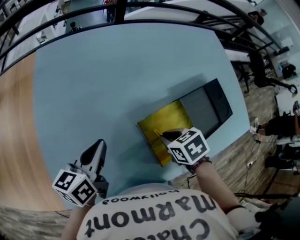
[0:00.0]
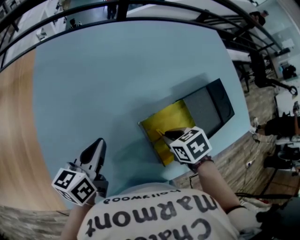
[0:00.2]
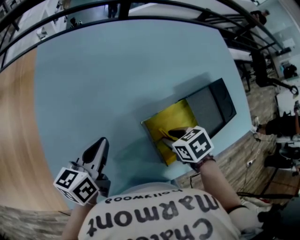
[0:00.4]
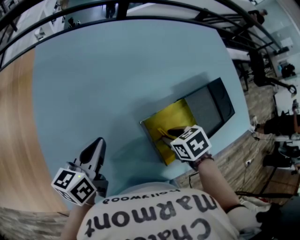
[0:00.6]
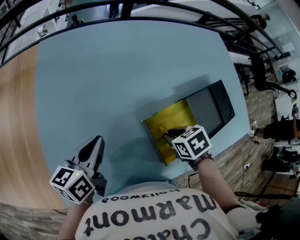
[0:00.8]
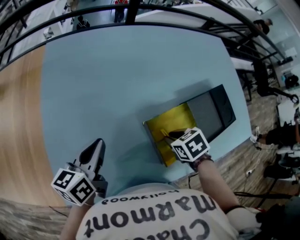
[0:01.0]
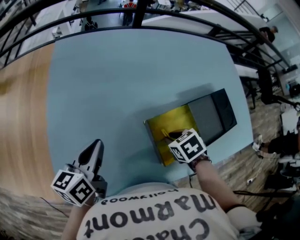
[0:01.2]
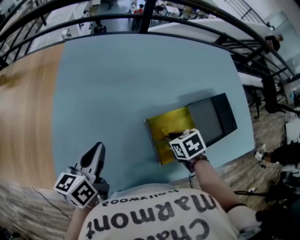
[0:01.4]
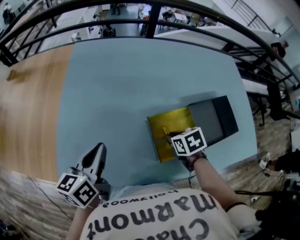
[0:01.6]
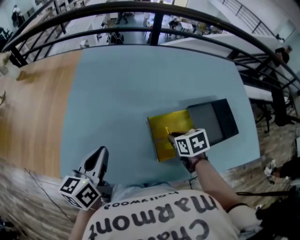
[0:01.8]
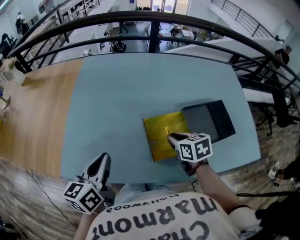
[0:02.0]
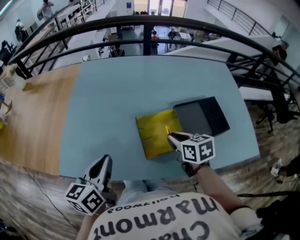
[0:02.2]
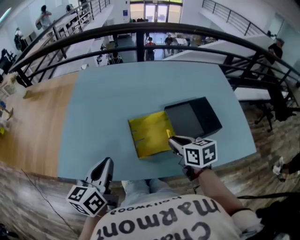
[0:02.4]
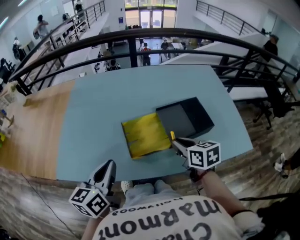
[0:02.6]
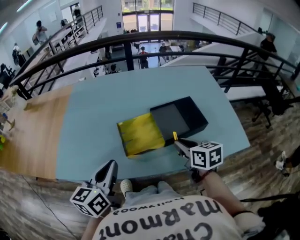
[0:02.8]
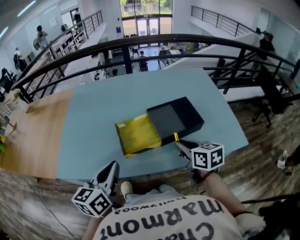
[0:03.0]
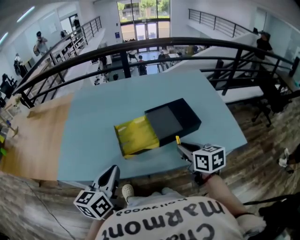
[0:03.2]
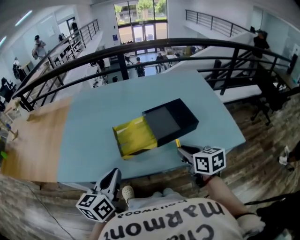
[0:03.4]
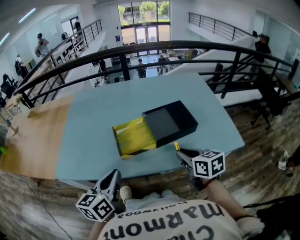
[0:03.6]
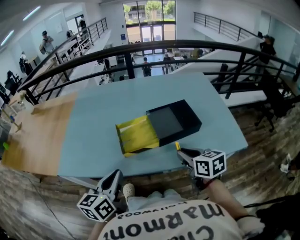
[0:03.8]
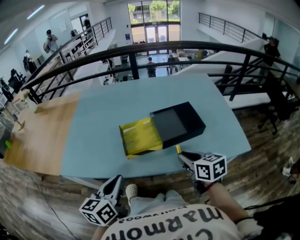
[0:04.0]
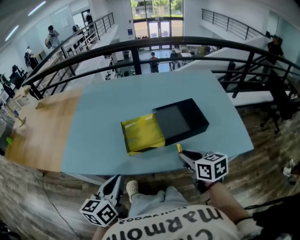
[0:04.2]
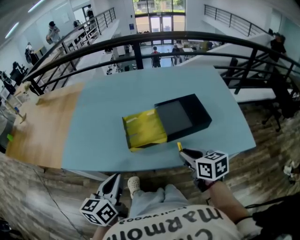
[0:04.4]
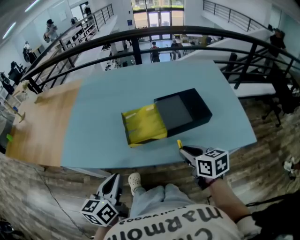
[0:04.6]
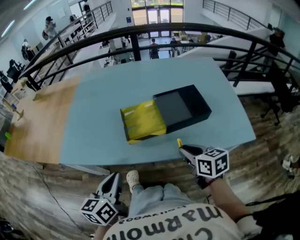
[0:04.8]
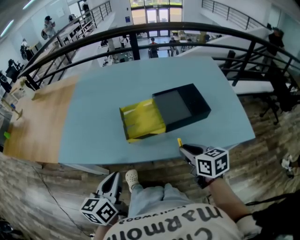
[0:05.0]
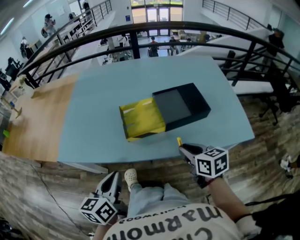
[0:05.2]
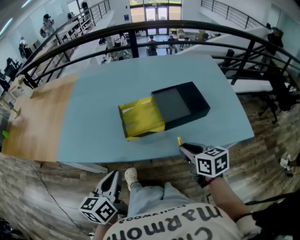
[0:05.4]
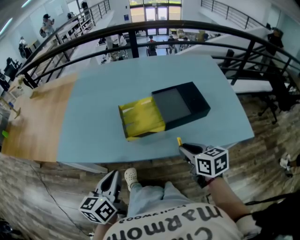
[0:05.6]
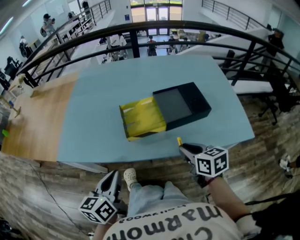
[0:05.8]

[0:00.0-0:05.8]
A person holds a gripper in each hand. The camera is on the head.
0:00.0 to 0:01.4: The left gripper travels backward by approximately 5 cm.
0:01.4 to 0:02.8: The left gripper shifts approximately 25 cm backward, to the right and upward; the right gripper shifts roughly 25 cm upward, to the right and backward, and tips its fingers upward by some 40 degrees.
0:02.8 to 0:04.4: The two grippers go some 10 cm backward.
0:04.4 to 0:05.8: There are only small adjustments of the grippers.

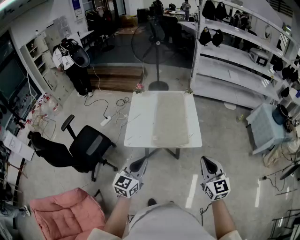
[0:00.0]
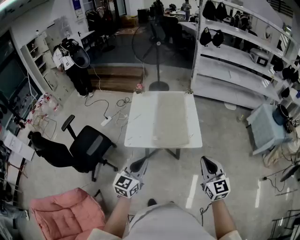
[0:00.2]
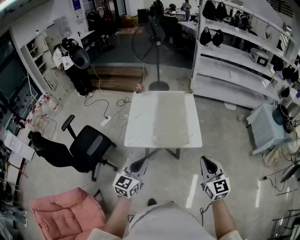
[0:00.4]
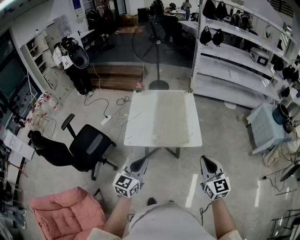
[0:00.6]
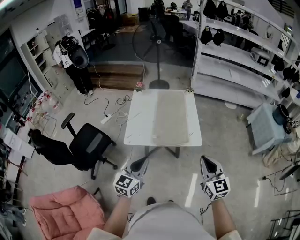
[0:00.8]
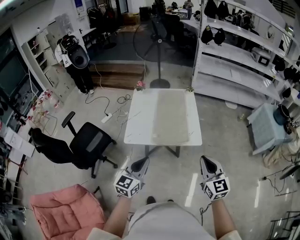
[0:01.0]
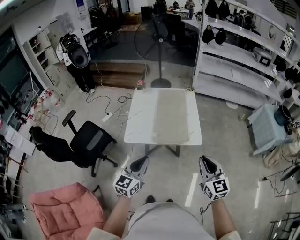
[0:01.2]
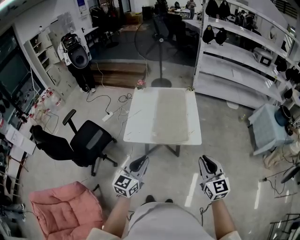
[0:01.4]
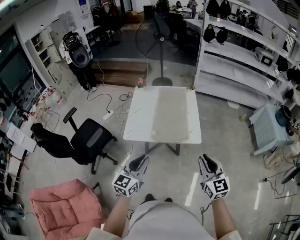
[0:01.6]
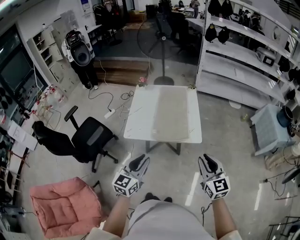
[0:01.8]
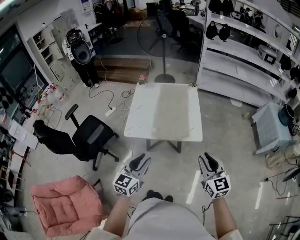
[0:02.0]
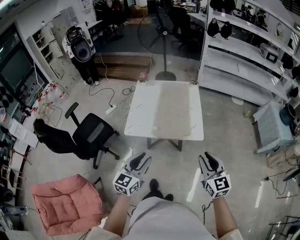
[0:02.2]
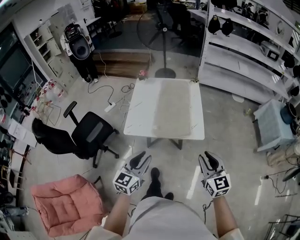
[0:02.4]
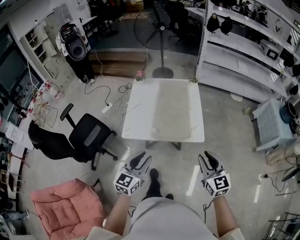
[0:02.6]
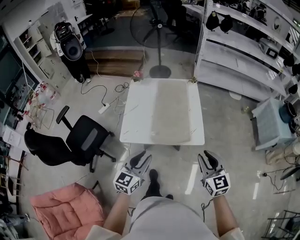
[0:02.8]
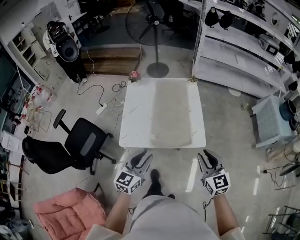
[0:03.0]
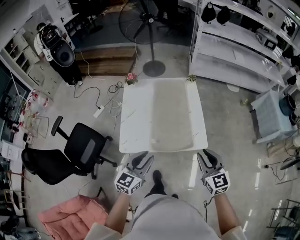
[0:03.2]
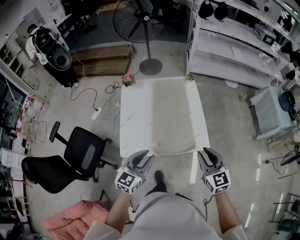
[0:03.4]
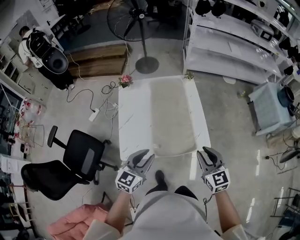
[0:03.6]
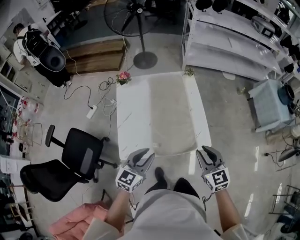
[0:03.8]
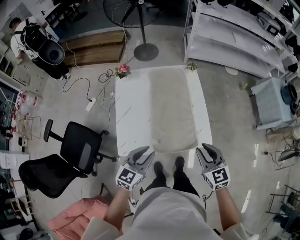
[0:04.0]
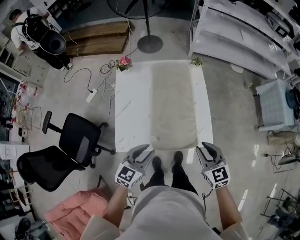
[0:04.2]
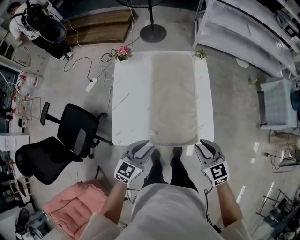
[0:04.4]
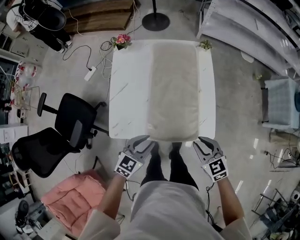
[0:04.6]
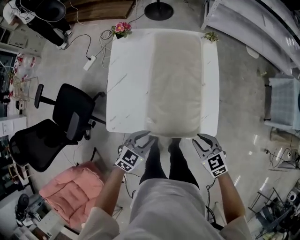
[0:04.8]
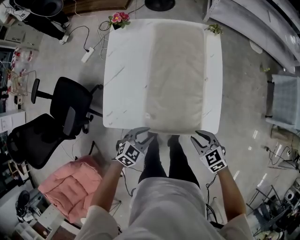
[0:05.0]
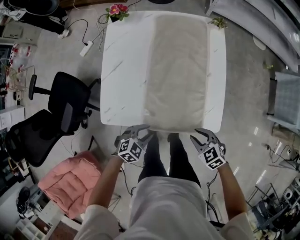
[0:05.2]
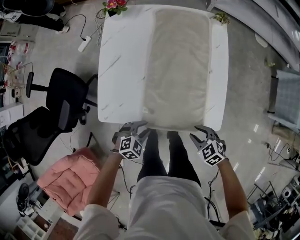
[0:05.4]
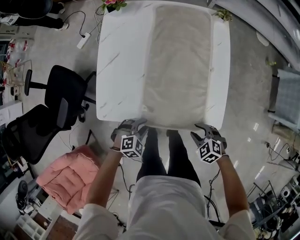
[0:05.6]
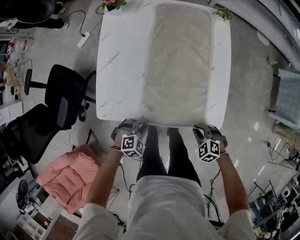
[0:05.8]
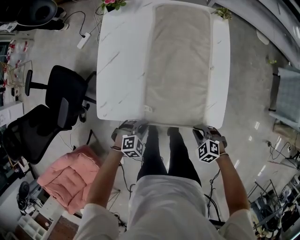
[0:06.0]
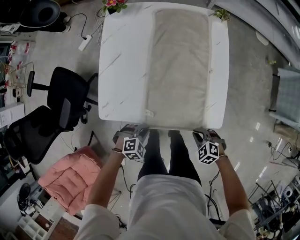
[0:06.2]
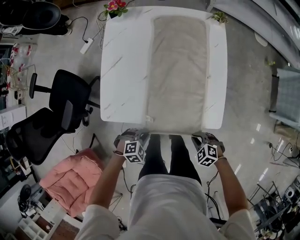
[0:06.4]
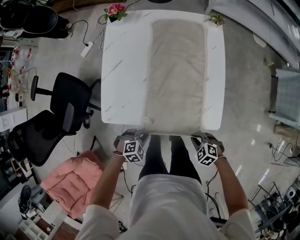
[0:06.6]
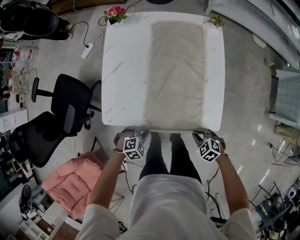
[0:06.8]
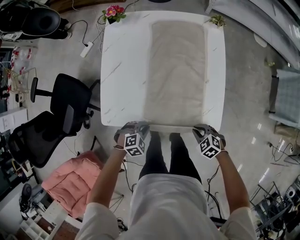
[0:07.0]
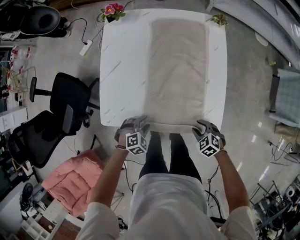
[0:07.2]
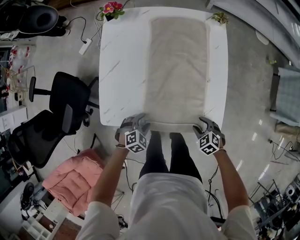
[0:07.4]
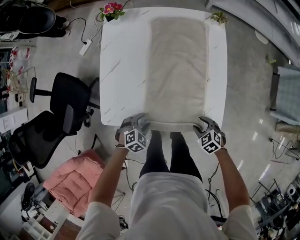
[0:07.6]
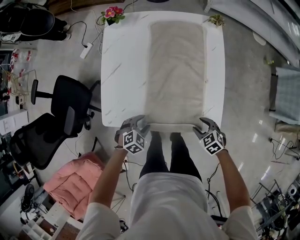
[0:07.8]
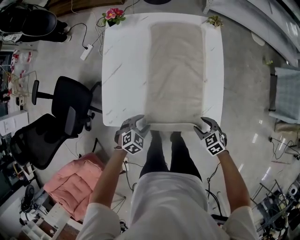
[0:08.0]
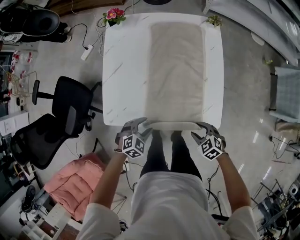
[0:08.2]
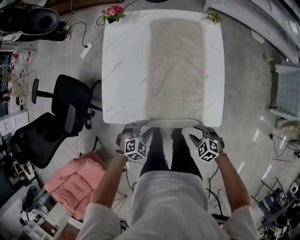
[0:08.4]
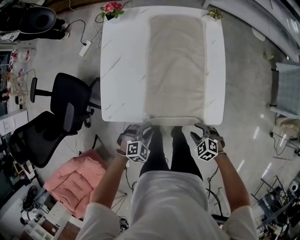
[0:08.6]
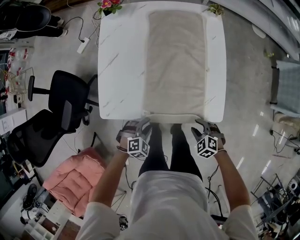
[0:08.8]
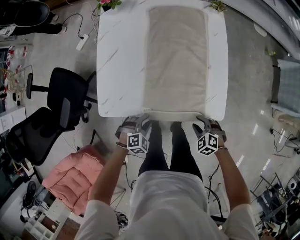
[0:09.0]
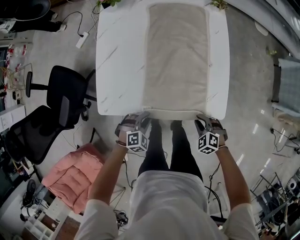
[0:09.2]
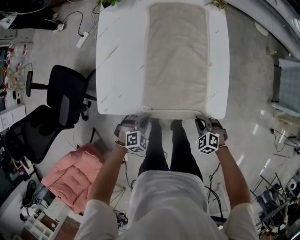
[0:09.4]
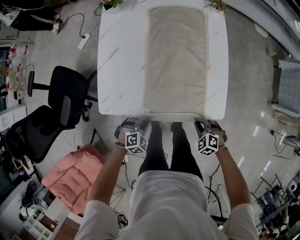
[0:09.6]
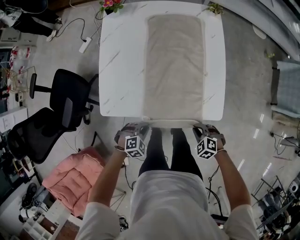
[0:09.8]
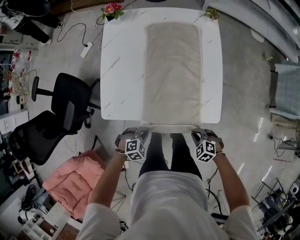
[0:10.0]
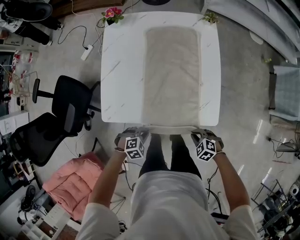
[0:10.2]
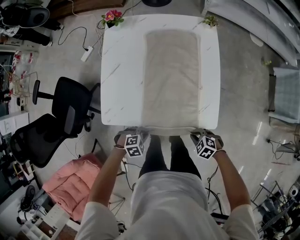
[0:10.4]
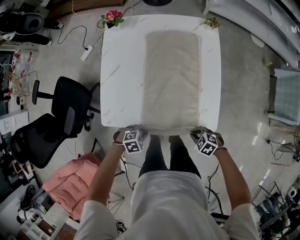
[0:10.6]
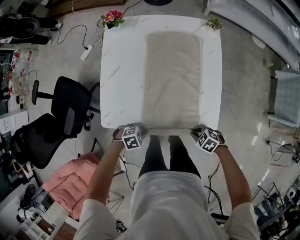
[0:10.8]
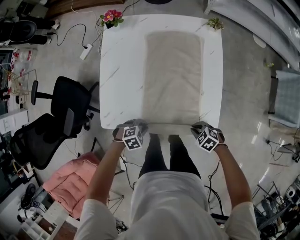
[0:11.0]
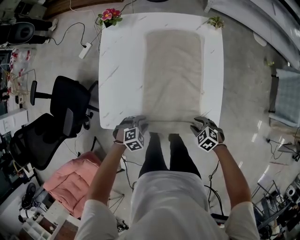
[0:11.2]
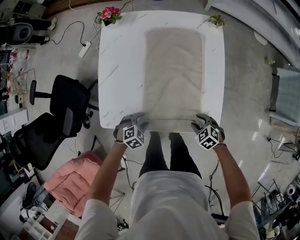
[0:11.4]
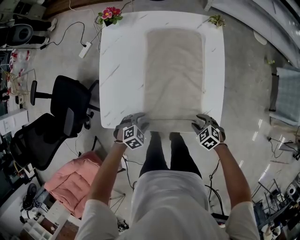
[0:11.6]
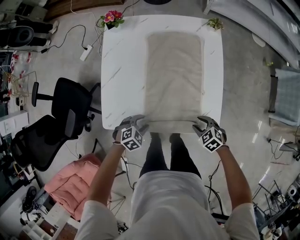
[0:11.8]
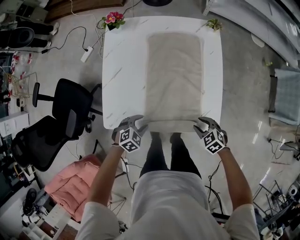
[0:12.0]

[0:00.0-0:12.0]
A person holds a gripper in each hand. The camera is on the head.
0:00.0 to 0:01.6: The grippers move only a little.
0:01.6 to 0:03.0: Both grippers travel together forward, approximately 15 cm.
0:03.0 to 0:04.4: Both grippers travel together forward and downward, some 20 cm.
0:04.4 to 0:06.0: The two grippers go some 25 cm downward. The right gripper tips its fingers downward by some 30 degrees; the left gripper angles its fingers downward, by some 40 degrees, and closes.
0:06.0 to 0:07.6: The right gripper changes place by approximately 5 cm, and opens. Meanwhile the left gripper moves roughly 5 cm, and opens.
0:07.6 to 0:09.0: The grippers both shift backward by approximately 5 cm.
0:09.0 to 0:10.4: The left gripper swivels about 20 degrees, and closes its fingers. The right gripper closes up.
0:10.4 to 0:12.0: The right gripper changes place by about 10 cm, and opens. The left gripper shifts by approximately 10 cm, changes its angle by roughly 20 degrees, and opens.

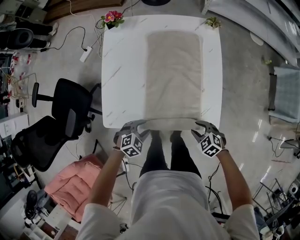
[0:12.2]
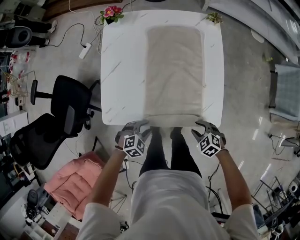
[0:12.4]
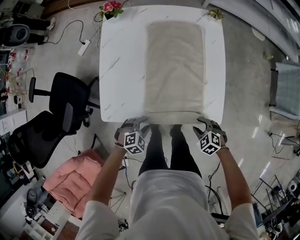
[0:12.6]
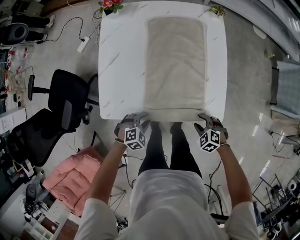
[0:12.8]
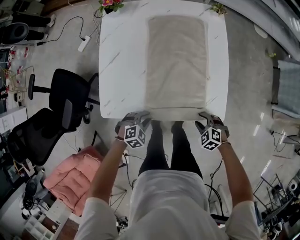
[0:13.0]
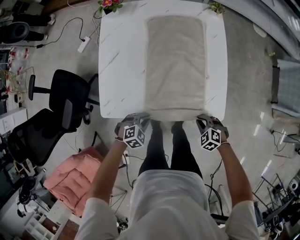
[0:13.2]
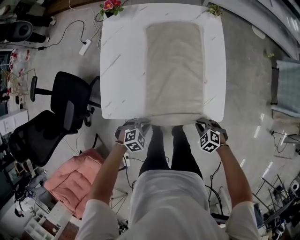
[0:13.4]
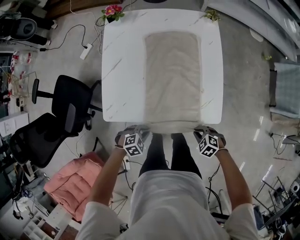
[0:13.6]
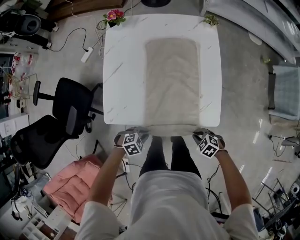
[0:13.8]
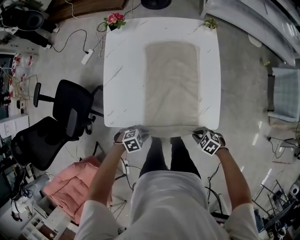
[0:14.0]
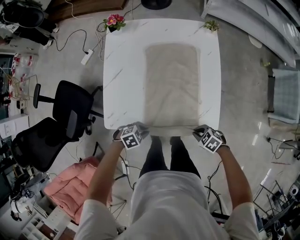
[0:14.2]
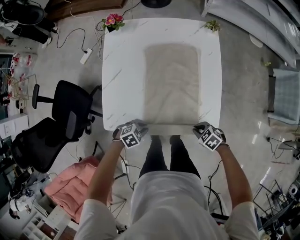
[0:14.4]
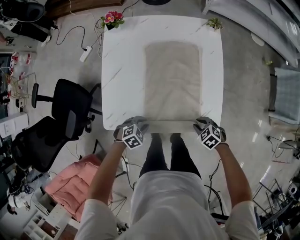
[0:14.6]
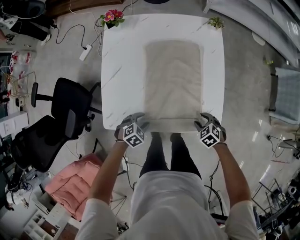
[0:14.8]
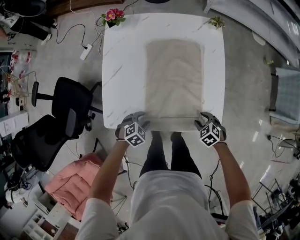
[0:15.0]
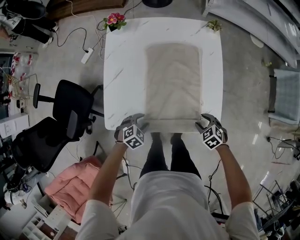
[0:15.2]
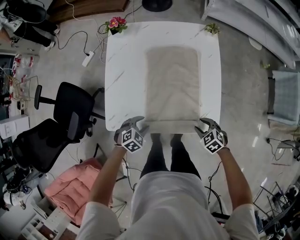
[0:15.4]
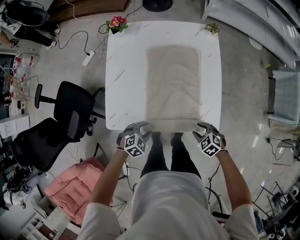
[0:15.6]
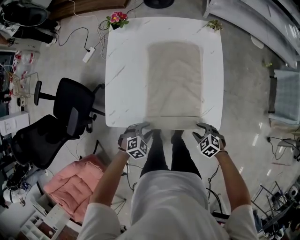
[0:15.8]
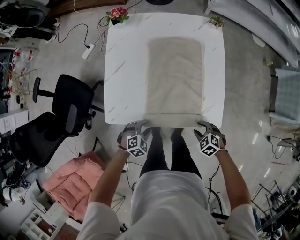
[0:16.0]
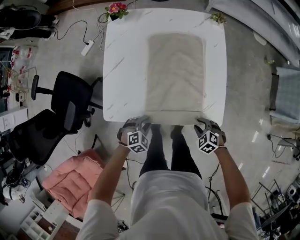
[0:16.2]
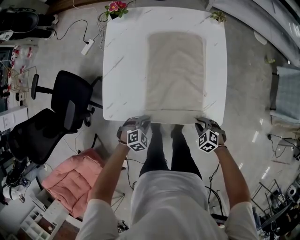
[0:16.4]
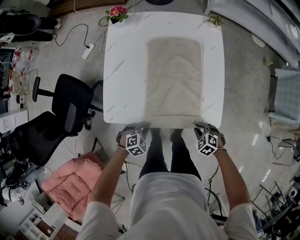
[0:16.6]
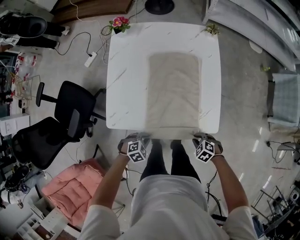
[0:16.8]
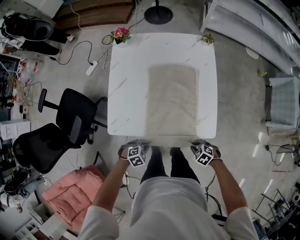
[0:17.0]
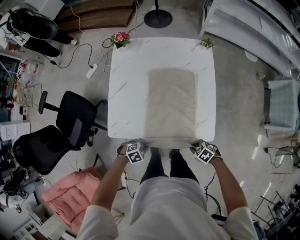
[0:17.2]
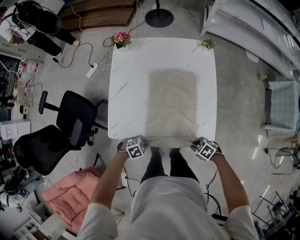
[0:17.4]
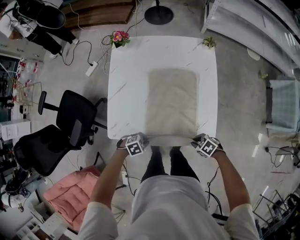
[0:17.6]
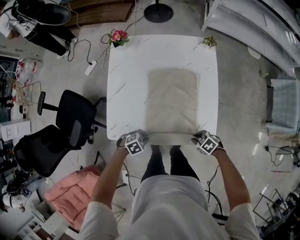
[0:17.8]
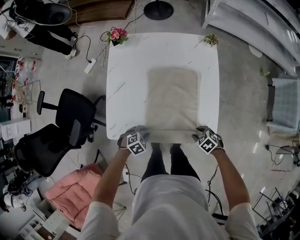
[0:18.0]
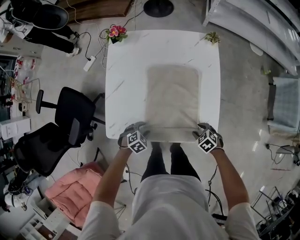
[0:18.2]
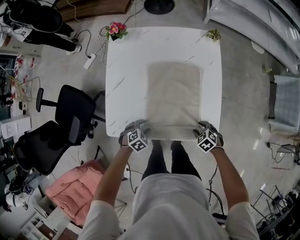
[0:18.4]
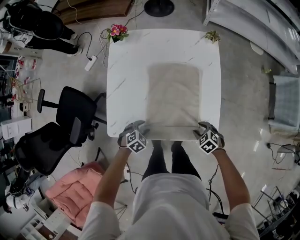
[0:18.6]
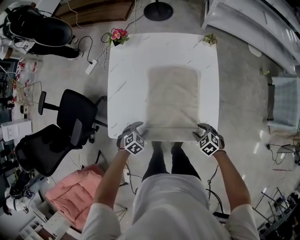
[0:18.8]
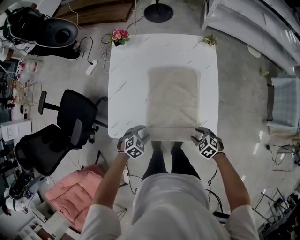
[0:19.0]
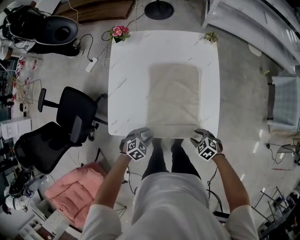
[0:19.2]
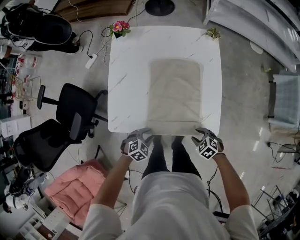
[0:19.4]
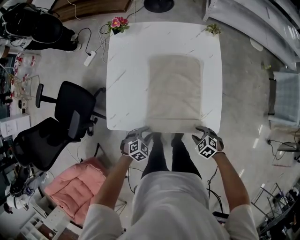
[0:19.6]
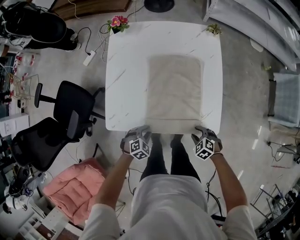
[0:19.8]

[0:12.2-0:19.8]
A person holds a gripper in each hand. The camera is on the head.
0:12.2 to 0:13.8: The right gripper ends up some 10 cm from where it was, and closes its fingers. The left gripper moves some 10 cm, and closes.
0:13.8 to 0:15.2: The left gripper changes place by roughly 10 cm, and opens. The right gripper moves approximately 15 cm, and opens its fingers.
0:15.2 to 0:16.8: The left gripper shifts by about 10 cm, and closes up, while the right gripper changes place by some 15 cm, and closes up.
0:16.8 to 0:18.2: The right gripper ends up approximately 10 cm from where it was, and opens. The left gripper shifts by some 10 cm, and opens.
0:18.2 to 0:19.8: The left gripper ends up approximately 5 cm from where it was, and closes up; the right gripper ends up about 10 cm from where it was.
